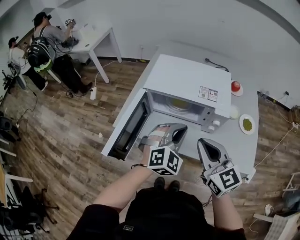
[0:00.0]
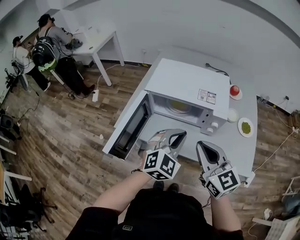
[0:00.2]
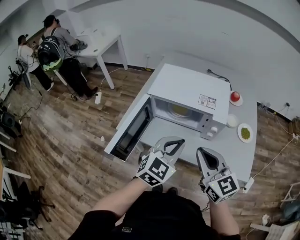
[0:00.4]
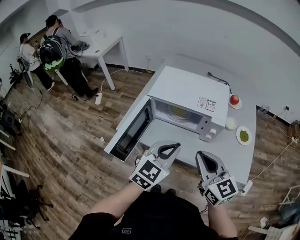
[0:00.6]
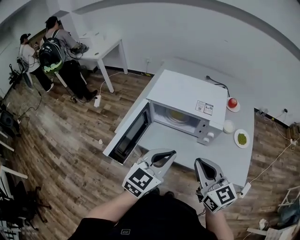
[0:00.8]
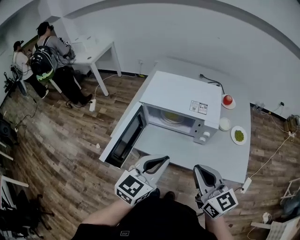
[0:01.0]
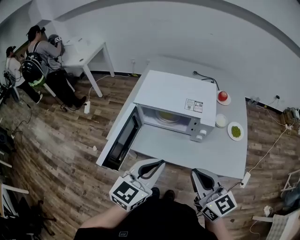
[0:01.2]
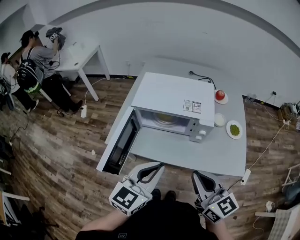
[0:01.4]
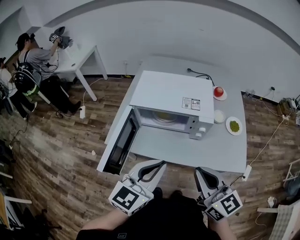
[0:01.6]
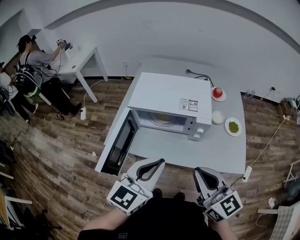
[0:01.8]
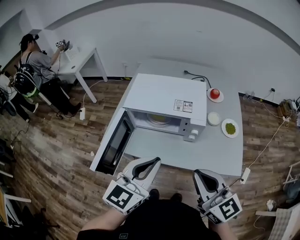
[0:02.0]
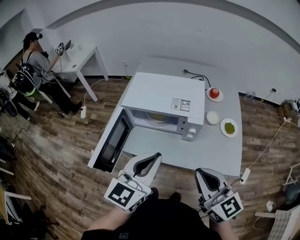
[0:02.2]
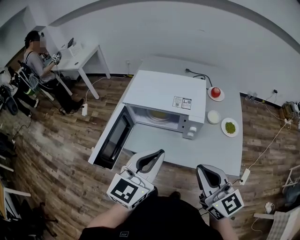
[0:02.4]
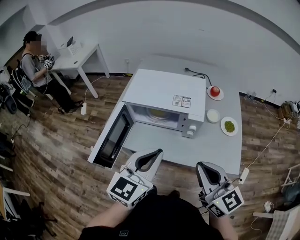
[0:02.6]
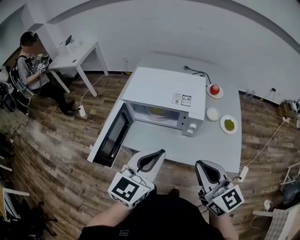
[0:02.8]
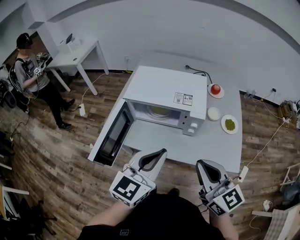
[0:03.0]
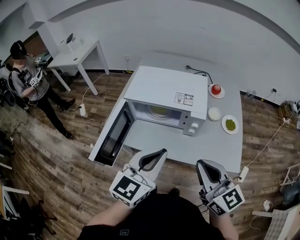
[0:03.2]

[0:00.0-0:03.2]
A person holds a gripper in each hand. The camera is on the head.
0:00.0 to 0:01.6: The right gripper is displaced backward by some 10 cm, while the left gripper heads backward and upward, covering approximately 15 cm, and twists some 40 degrees counterclockwise, seen from behind.
0:01.6 to 0:03.2: The right gripper travels to the right by roughly 5 cm; the left gripper changes place by approximately 5 cm.

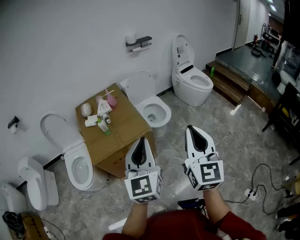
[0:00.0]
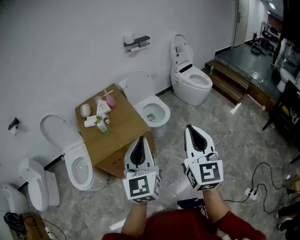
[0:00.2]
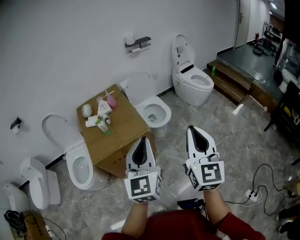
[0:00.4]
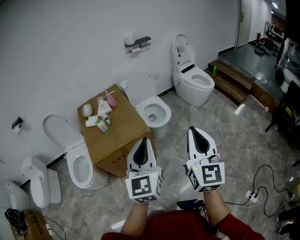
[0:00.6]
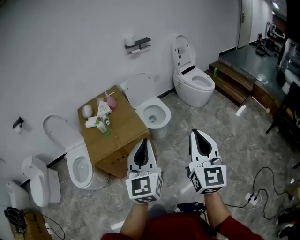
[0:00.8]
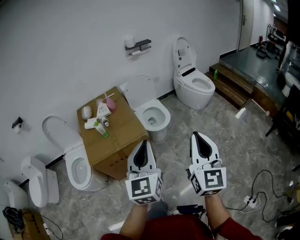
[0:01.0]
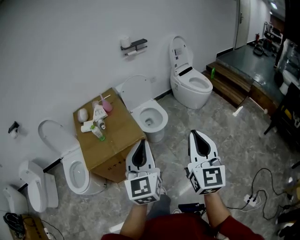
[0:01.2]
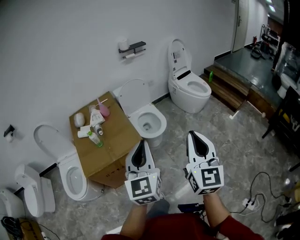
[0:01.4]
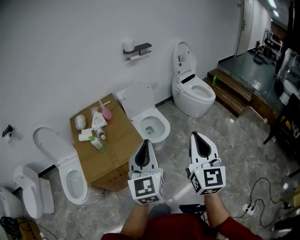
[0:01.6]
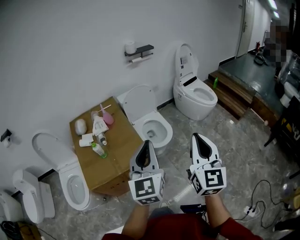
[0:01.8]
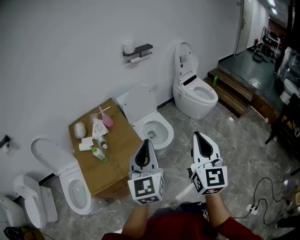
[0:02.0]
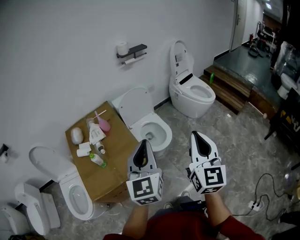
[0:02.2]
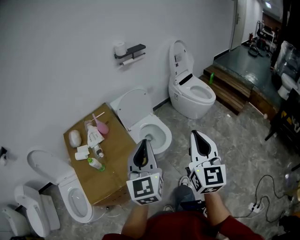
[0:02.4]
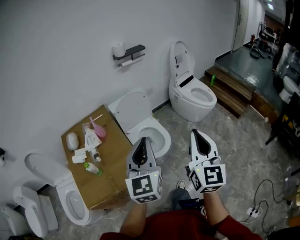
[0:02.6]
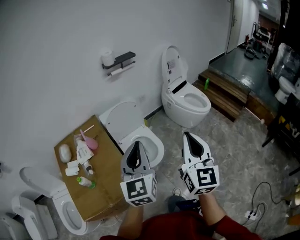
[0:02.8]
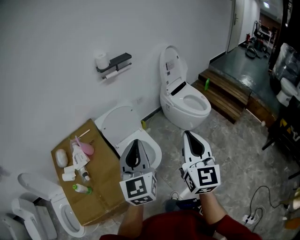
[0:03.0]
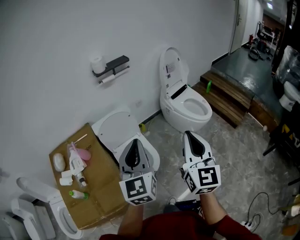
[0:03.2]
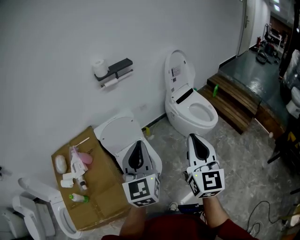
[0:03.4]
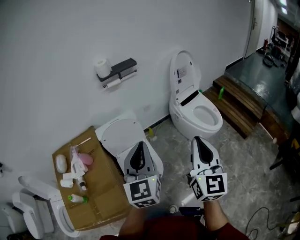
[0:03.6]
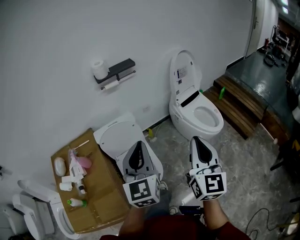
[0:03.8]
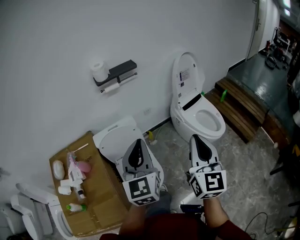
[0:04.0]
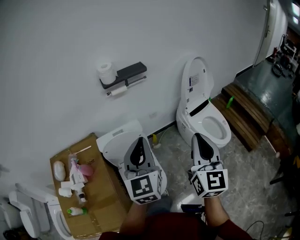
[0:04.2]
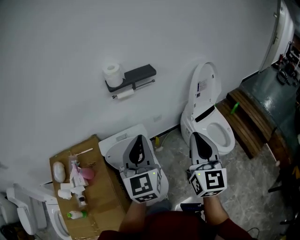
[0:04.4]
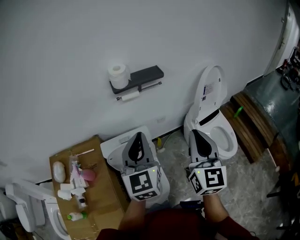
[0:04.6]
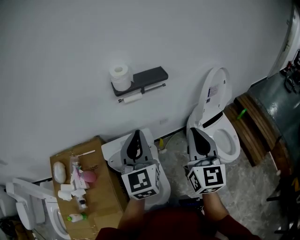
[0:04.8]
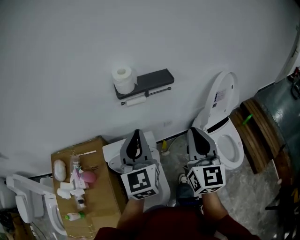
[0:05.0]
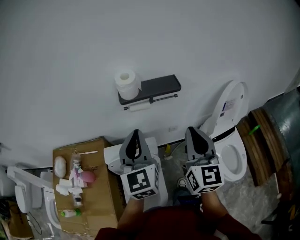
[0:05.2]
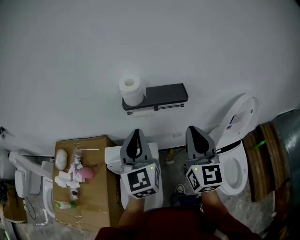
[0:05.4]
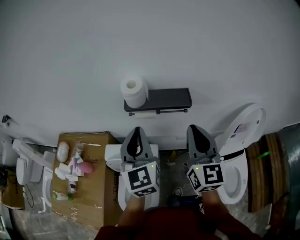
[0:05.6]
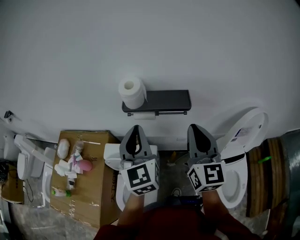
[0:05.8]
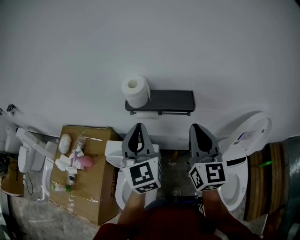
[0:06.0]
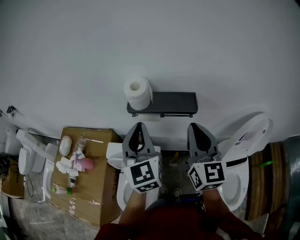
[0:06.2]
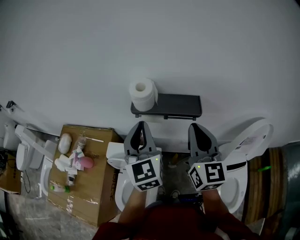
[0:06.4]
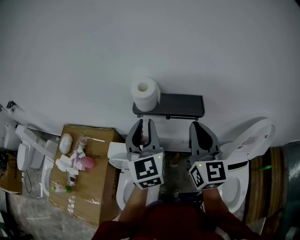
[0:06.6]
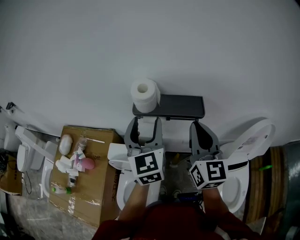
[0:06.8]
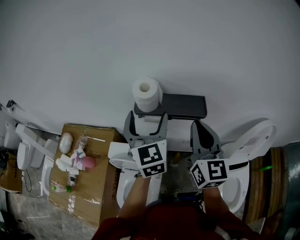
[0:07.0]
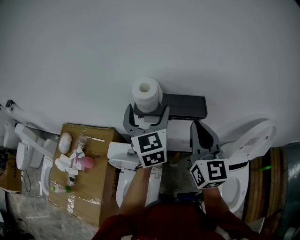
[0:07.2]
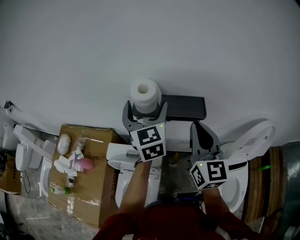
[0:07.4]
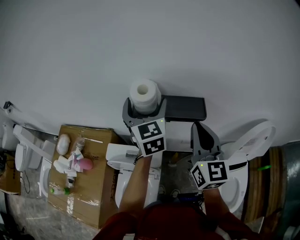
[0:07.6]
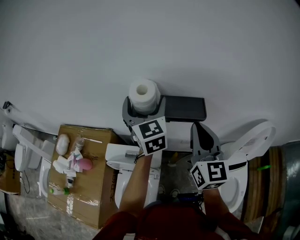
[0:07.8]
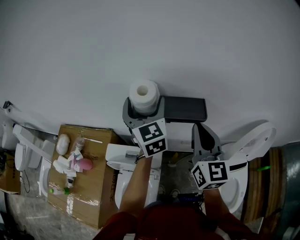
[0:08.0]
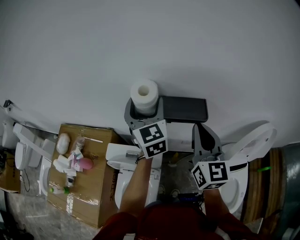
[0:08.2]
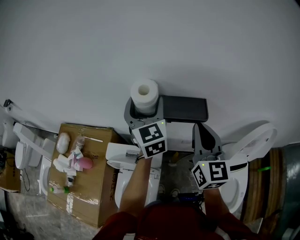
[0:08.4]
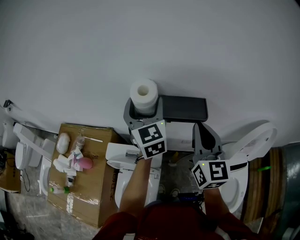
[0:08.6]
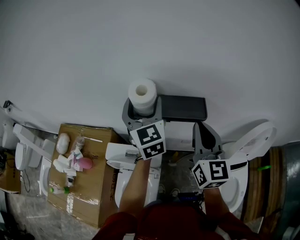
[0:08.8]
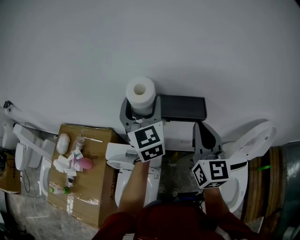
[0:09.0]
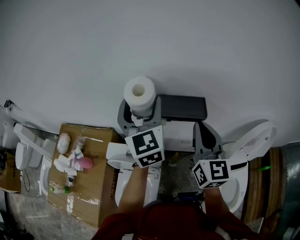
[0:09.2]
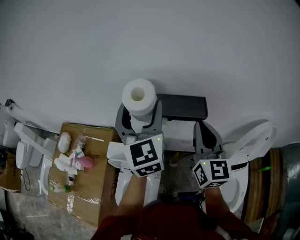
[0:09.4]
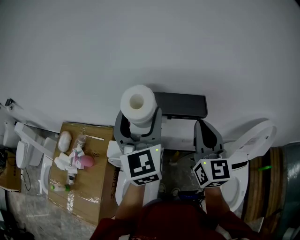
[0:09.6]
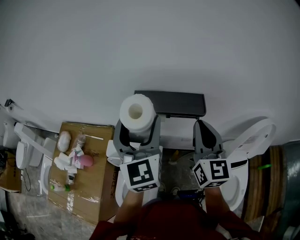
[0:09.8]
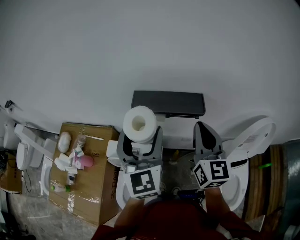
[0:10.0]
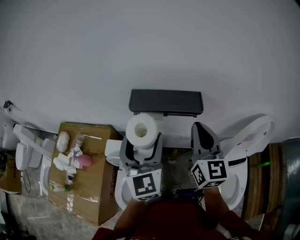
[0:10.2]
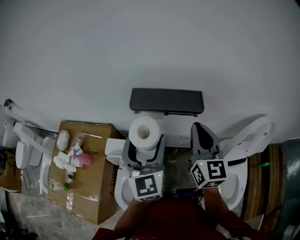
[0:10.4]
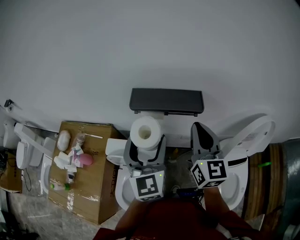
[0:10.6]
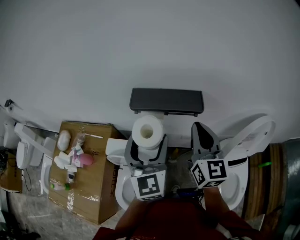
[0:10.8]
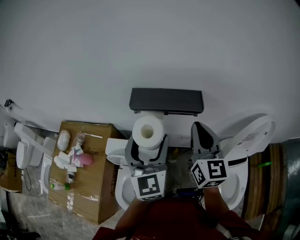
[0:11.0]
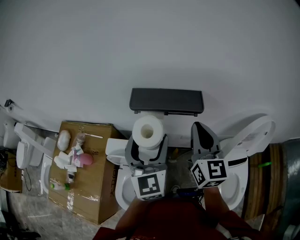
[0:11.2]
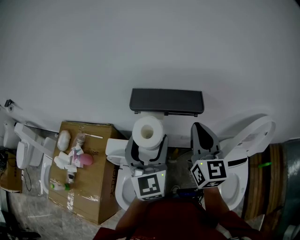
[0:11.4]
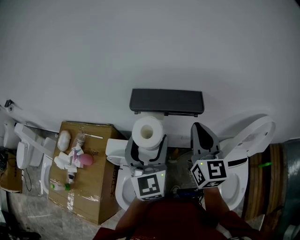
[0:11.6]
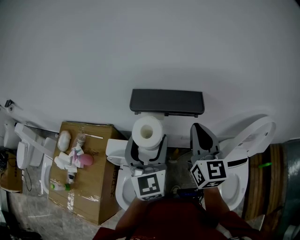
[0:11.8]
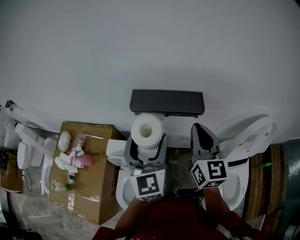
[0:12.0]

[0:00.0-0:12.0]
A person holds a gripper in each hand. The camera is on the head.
0:00.0 to 0:01.6: Both grippers move forward, roughly 15 cm.
0:01.6 to 0:03.0: The two grippers go approximately 35 cm forward.
0:03.0 to 0:04.4: The two grippers go some 40 cm forward.
0:04.4 to 0:06.0: The right gripper changes place by about 35 cm, and rotates approximately 30 degrees; the left gripper shifts by roughly 30 cm, and rotates some 30 degrees.
0:06.0 to 0:07.6: The right gripper shifts approximately 5 cm forward. Meanwhile the left gripper heads forward, covering roughly 15 cm, and opens up.
0:07.6 to 0:09.0: The grippers move only a little.
0:09.0 to 0:10.4: The left gripper shifts roughly 15 cm backward.
0:10.4 to 0:12.0: Both grippers stay about where they are.

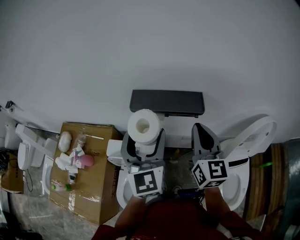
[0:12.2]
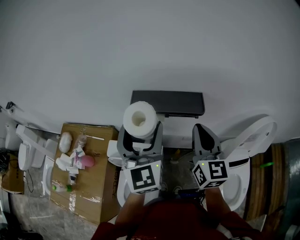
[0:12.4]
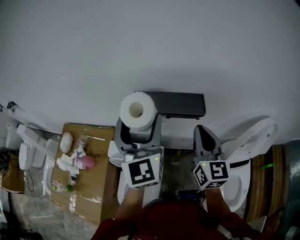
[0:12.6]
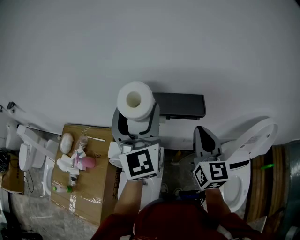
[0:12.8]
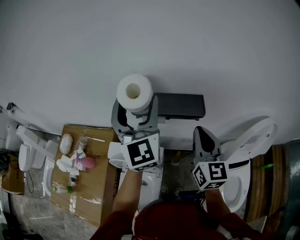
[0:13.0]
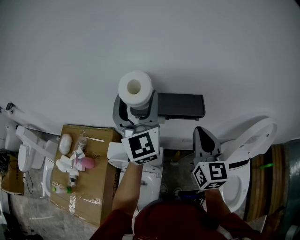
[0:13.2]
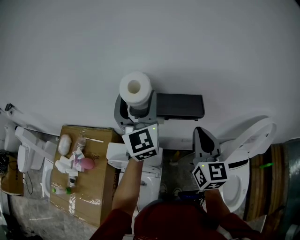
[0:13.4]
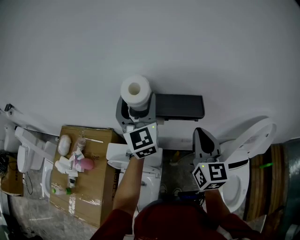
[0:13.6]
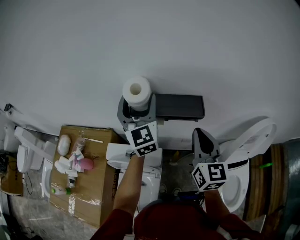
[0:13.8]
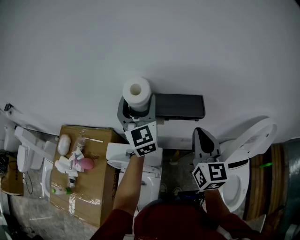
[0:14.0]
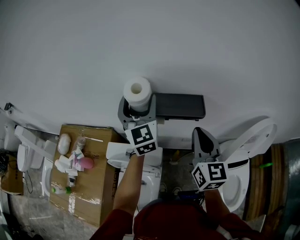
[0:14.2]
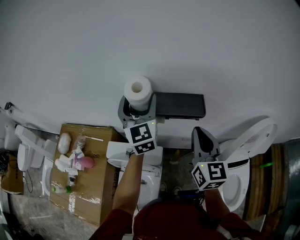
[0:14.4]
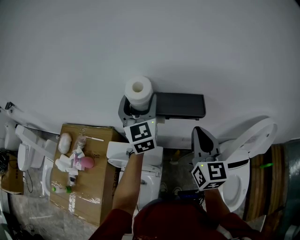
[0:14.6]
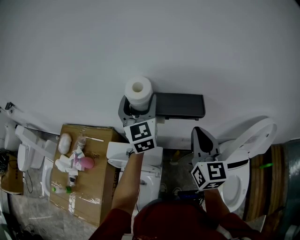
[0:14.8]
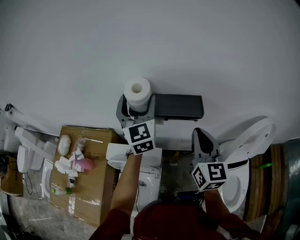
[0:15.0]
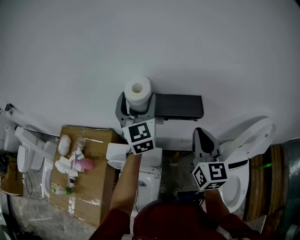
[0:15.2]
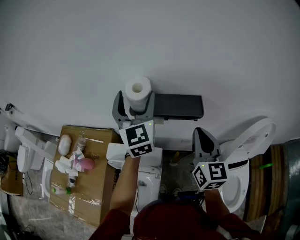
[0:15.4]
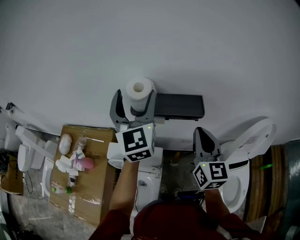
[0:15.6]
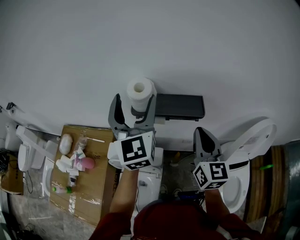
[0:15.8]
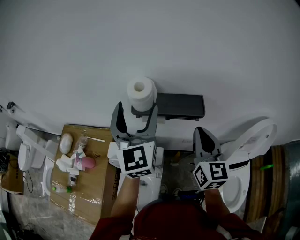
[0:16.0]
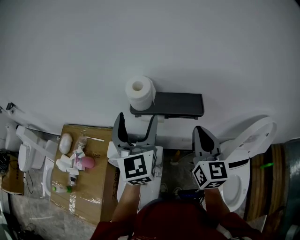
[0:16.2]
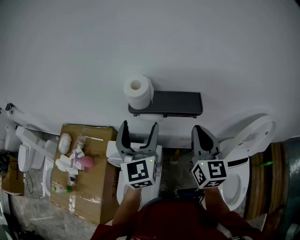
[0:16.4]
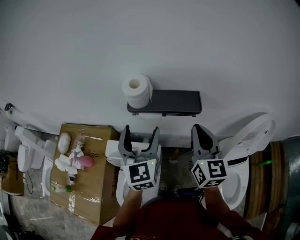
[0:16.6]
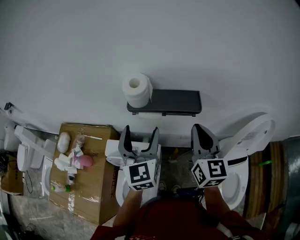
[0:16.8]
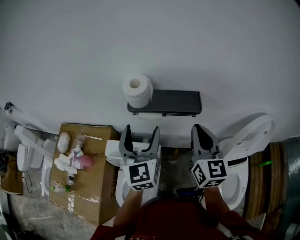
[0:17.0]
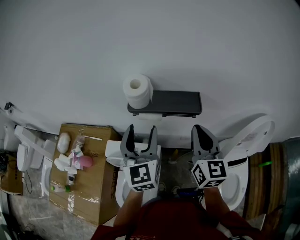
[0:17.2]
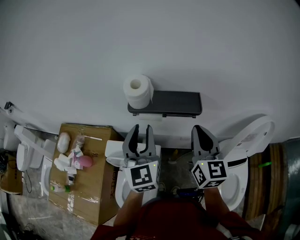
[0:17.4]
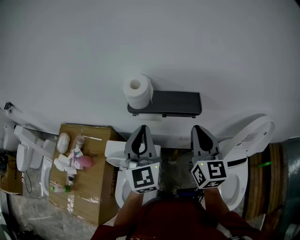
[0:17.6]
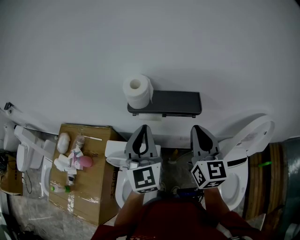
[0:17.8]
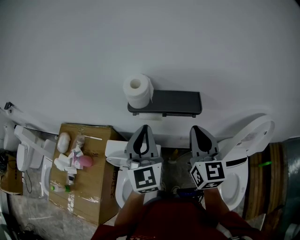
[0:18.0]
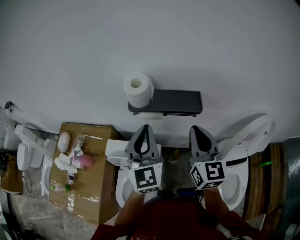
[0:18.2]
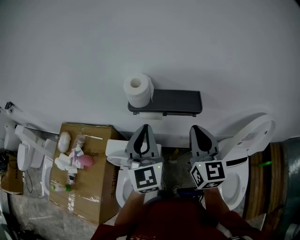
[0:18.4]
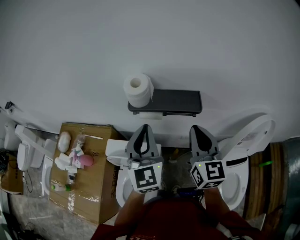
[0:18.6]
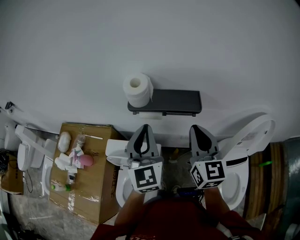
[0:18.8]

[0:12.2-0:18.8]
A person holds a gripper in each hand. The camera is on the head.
0:12.2 to 0:13.8: The left gripper shifts about 15 cm forward.
0:13.8 to 0:15.4: There are only small adjustments of the grippers.
0:15.4 to 0:17.2: The left gripper travels backward and downward by some 15 cm.
0:17.2 to 0:18.8: The left gripper closes its fingers.

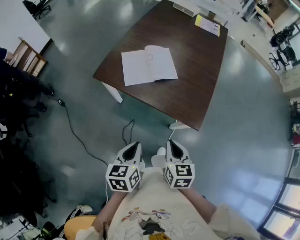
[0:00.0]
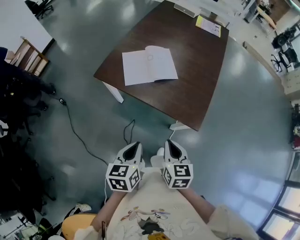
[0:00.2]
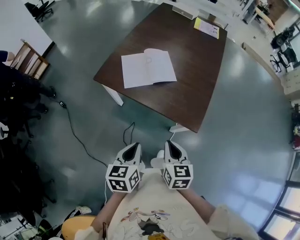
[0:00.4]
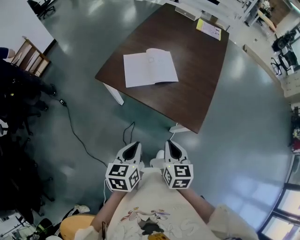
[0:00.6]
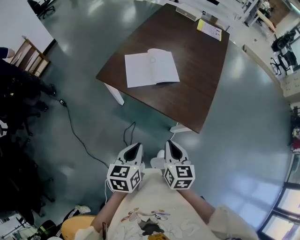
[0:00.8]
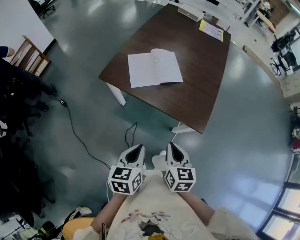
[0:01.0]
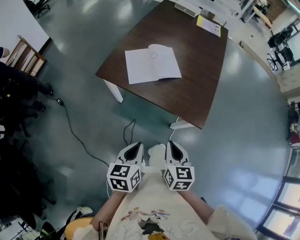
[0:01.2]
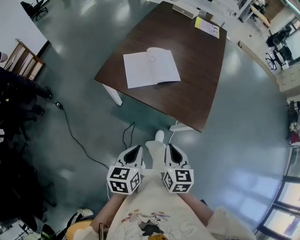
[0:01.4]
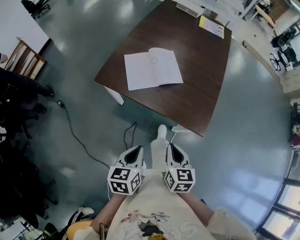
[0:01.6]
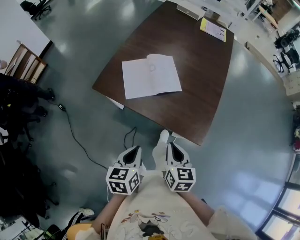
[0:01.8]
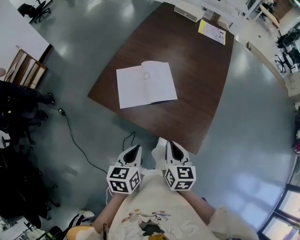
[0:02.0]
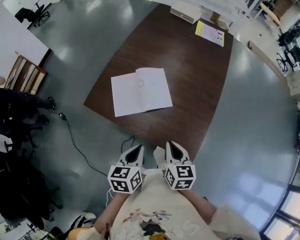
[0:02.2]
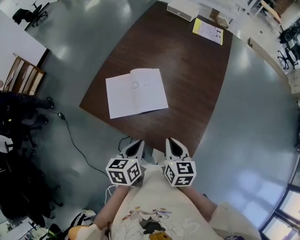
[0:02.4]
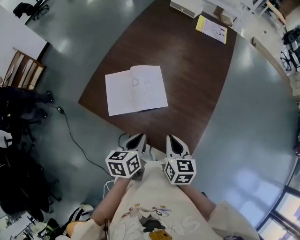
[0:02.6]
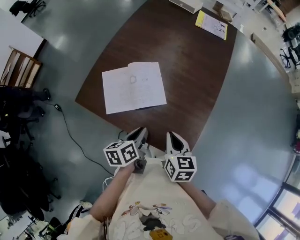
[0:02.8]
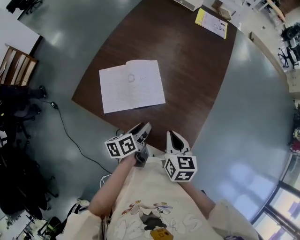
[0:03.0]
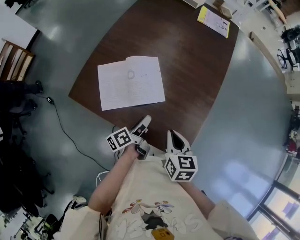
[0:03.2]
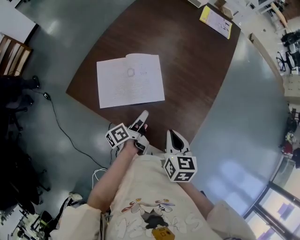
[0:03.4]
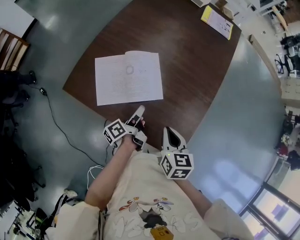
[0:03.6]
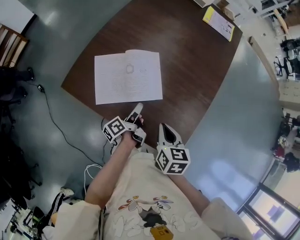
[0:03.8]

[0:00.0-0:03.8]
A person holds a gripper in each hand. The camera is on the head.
0:01.2 to 0:02.6: The right gripper moves approximately 30 cm.
0:02.6 to 0:03.8: The right gripper changes place by some 5 cm.
